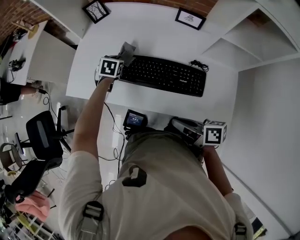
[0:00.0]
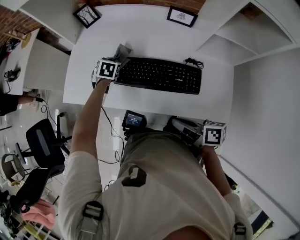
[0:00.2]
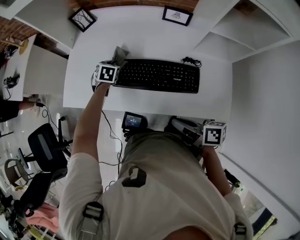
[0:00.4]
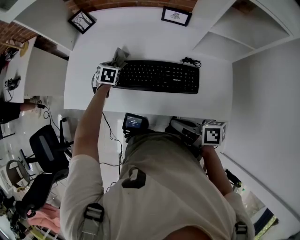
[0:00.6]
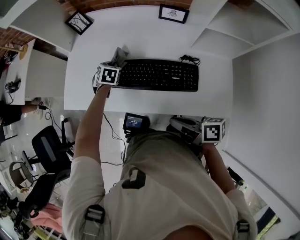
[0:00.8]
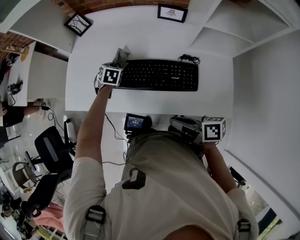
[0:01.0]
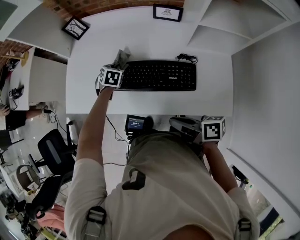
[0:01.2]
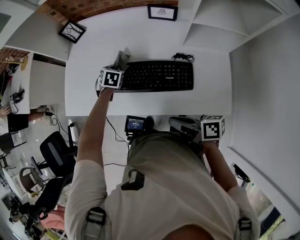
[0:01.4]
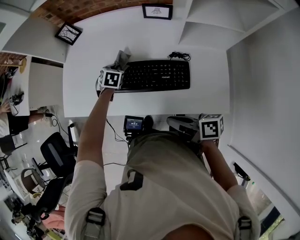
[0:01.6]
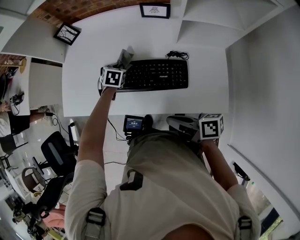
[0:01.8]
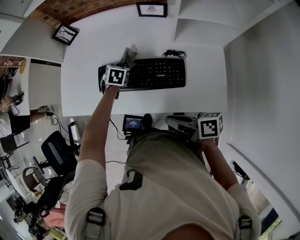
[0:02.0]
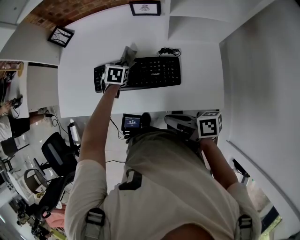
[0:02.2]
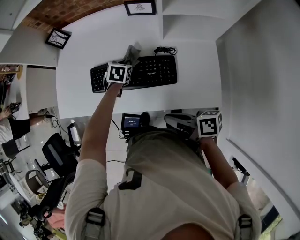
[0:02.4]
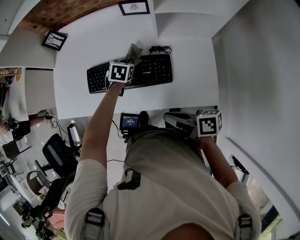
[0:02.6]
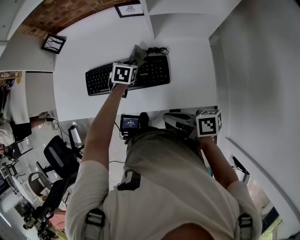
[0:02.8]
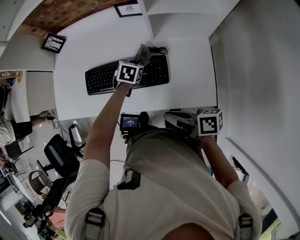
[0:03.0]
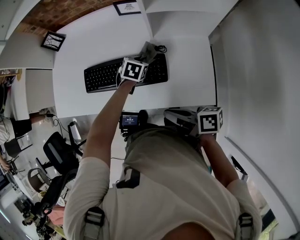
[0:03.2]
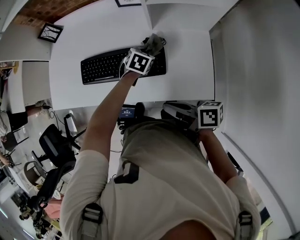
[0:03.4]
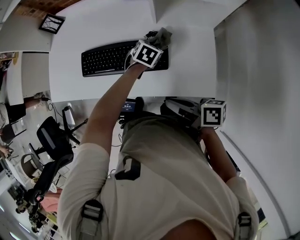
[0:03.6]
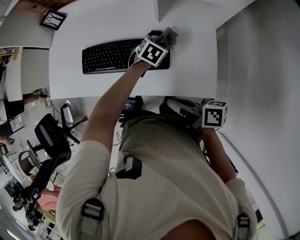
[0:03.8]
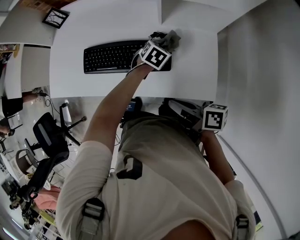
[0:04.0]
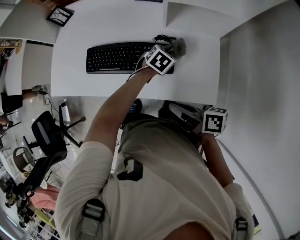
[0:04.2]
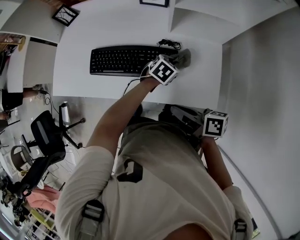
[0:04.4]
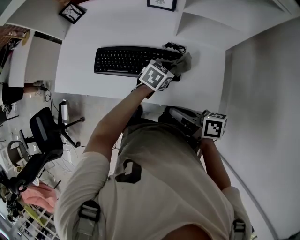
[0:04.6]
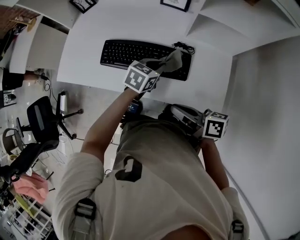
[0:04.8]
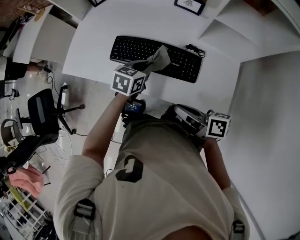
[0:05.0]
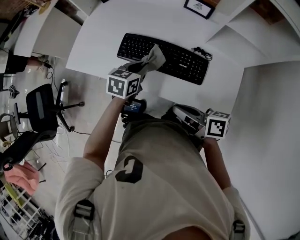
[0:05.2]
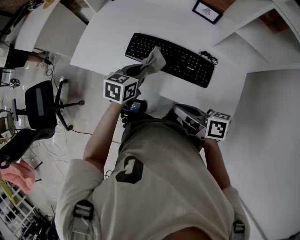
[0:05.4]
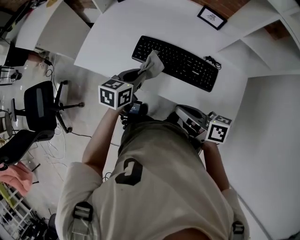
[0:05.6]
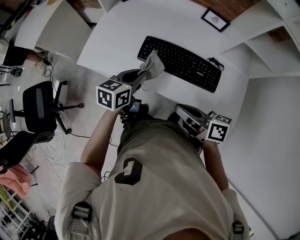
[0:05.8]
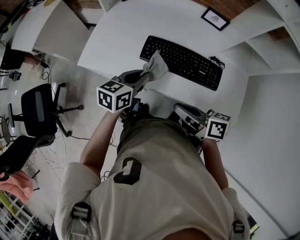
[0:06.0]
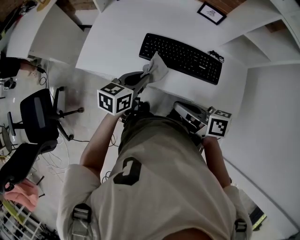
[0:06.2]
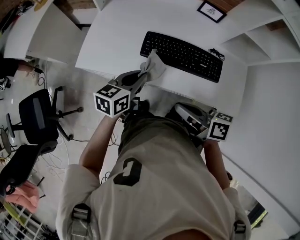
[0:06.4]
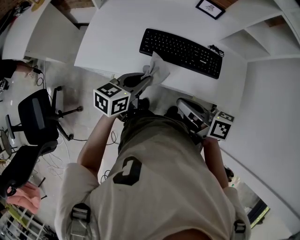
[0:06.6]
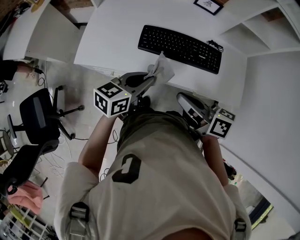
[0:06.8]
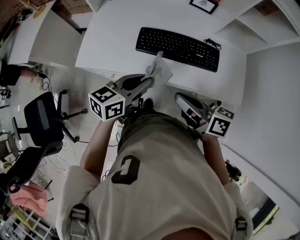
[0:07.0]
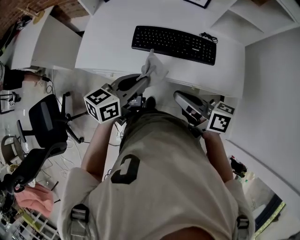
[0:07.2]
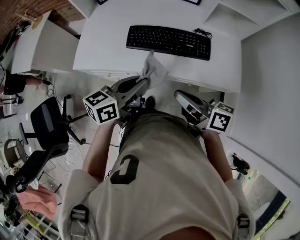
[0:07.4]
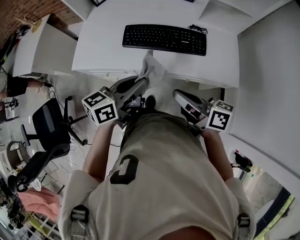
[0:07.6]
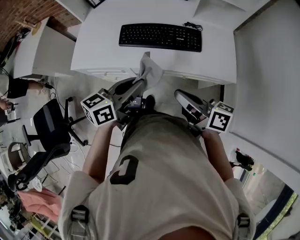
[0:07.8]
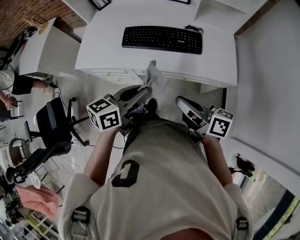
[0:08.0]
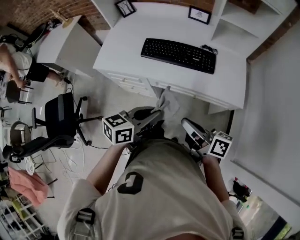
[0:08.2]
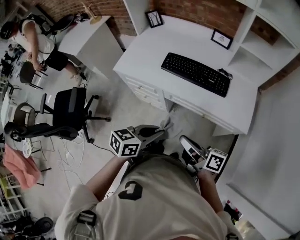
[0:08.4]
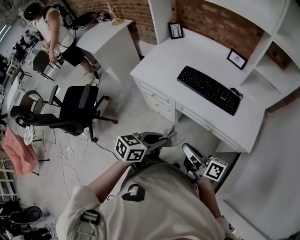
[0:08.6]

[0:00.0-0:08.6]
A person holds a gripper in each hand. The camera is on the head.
0:00.0 to 0:01.4: The left gripper is displaced to the right by about 5 cm.
0:01.4 to 0:02.8: The right gripper is displaced to the right by some 10 cm. Meanwhile the left gripper shifts some 20 cm to the right and backward.
0:02.8 to 0:04.4: The left gripper heads to the right and backward, covering some 15 cm.
0:04.4 to 0:05.8: The left gripper heads to the left, covering some 40 cm, and rotates some 50 degrees. Meanwhile the right gripper is displaced to the left by about 20 cm.
0:05.8 to 0:07.2: The left gripper heads backward and upward, covering some 10 cm, and swivels about 20 degrees, while the right gripper shifts by roughly 5 cm.
0:07.2 to 0:08.6: The two grippers go about 15 cm backward.

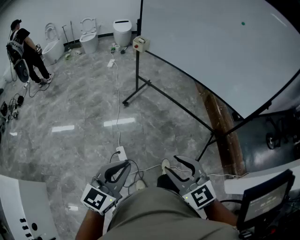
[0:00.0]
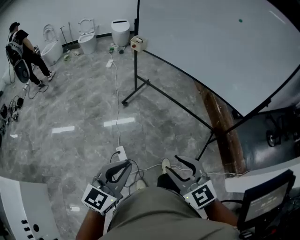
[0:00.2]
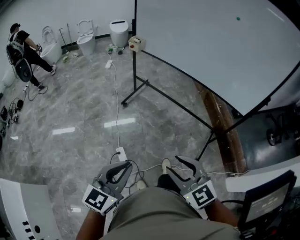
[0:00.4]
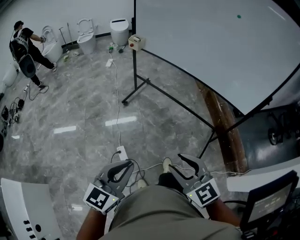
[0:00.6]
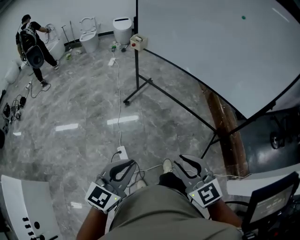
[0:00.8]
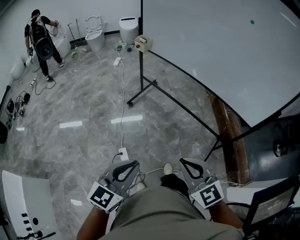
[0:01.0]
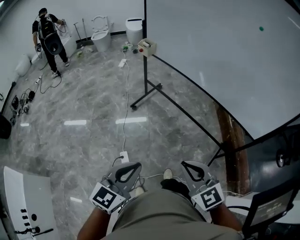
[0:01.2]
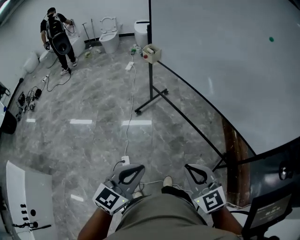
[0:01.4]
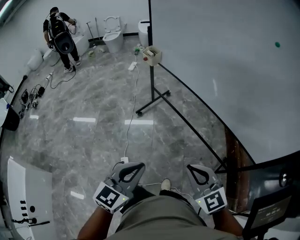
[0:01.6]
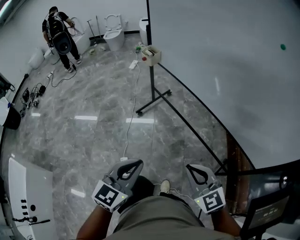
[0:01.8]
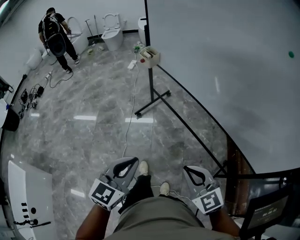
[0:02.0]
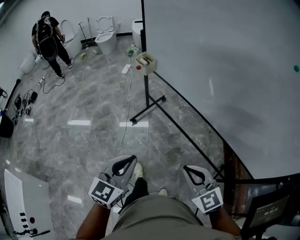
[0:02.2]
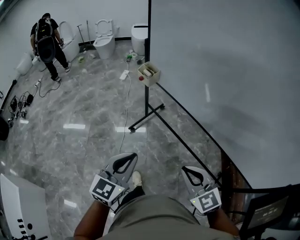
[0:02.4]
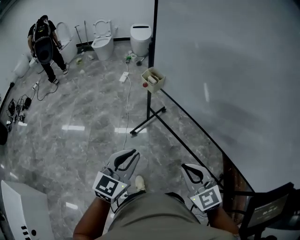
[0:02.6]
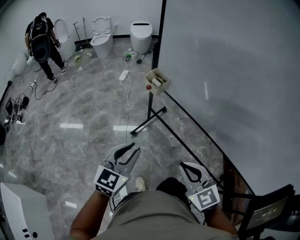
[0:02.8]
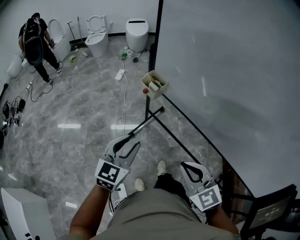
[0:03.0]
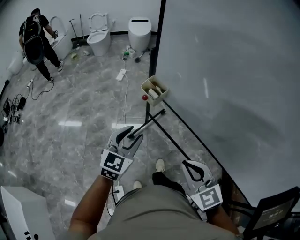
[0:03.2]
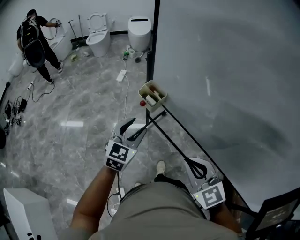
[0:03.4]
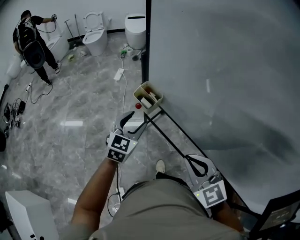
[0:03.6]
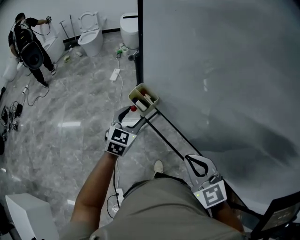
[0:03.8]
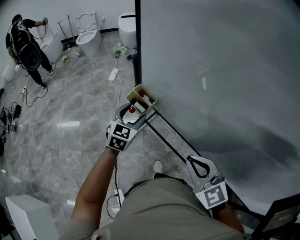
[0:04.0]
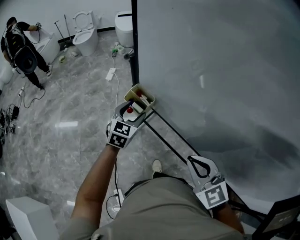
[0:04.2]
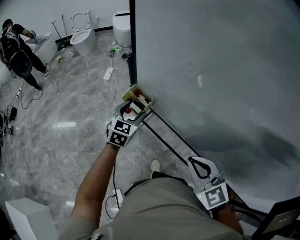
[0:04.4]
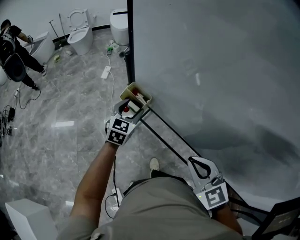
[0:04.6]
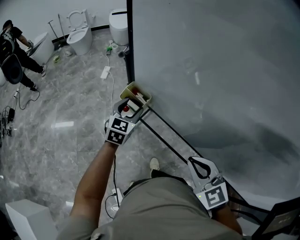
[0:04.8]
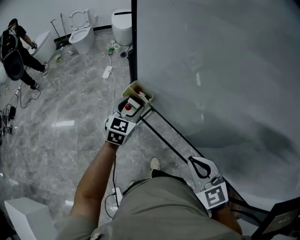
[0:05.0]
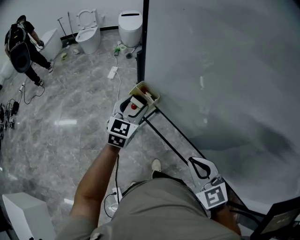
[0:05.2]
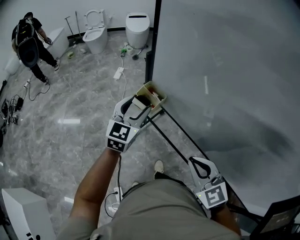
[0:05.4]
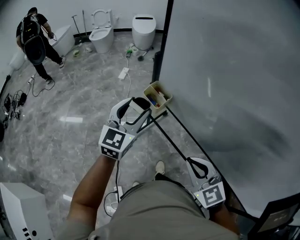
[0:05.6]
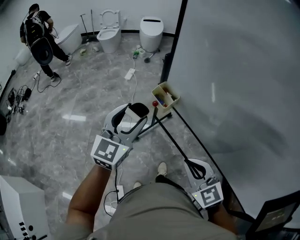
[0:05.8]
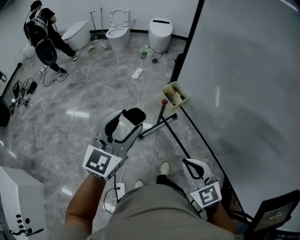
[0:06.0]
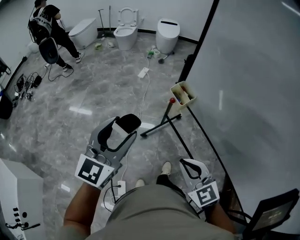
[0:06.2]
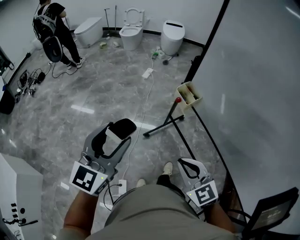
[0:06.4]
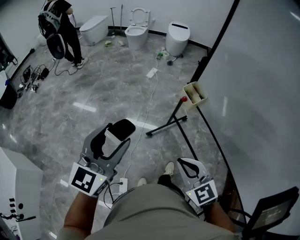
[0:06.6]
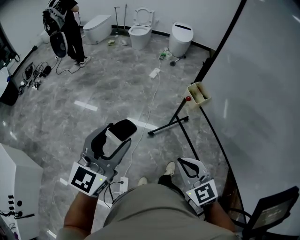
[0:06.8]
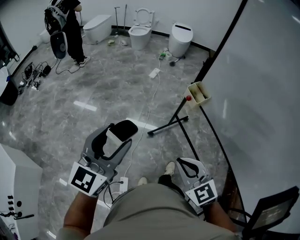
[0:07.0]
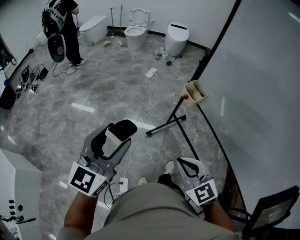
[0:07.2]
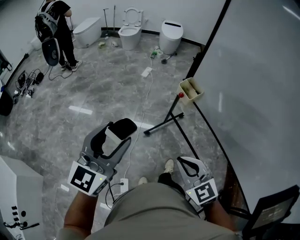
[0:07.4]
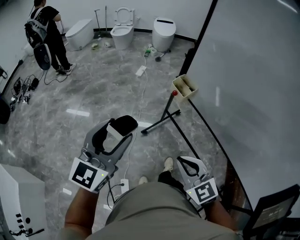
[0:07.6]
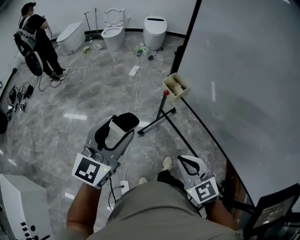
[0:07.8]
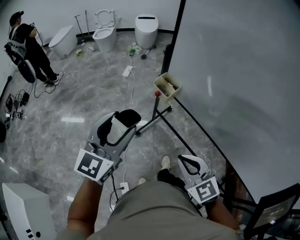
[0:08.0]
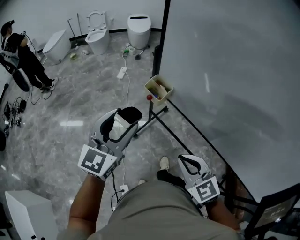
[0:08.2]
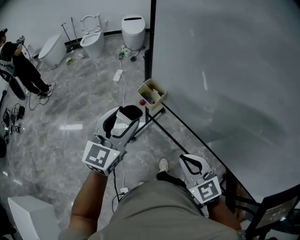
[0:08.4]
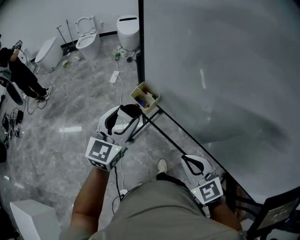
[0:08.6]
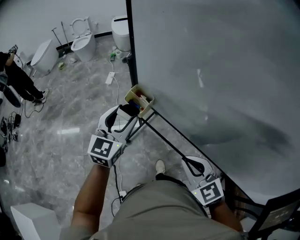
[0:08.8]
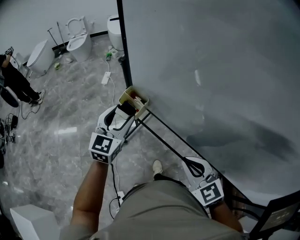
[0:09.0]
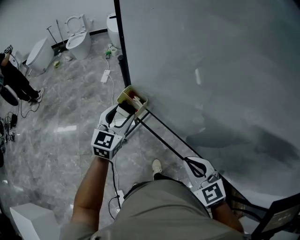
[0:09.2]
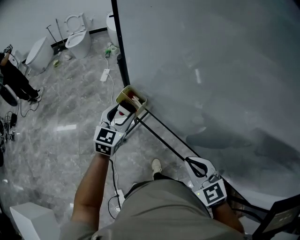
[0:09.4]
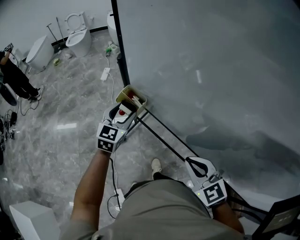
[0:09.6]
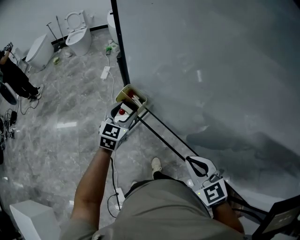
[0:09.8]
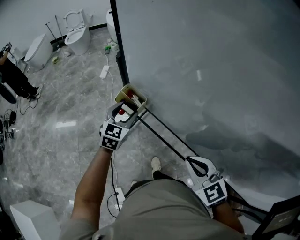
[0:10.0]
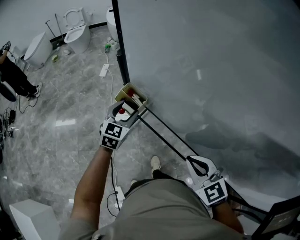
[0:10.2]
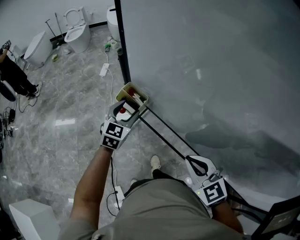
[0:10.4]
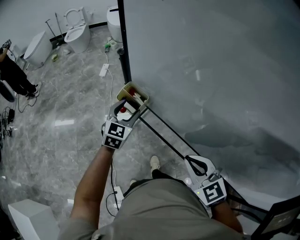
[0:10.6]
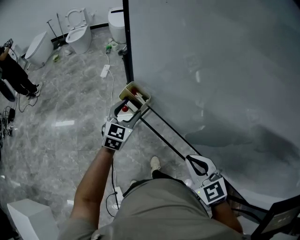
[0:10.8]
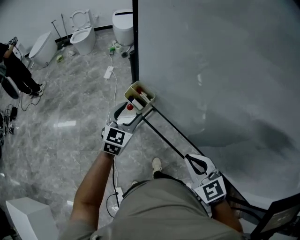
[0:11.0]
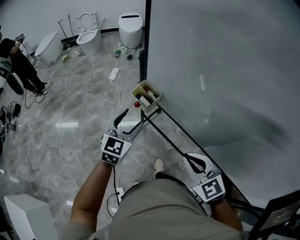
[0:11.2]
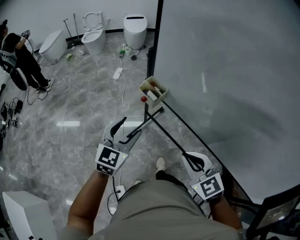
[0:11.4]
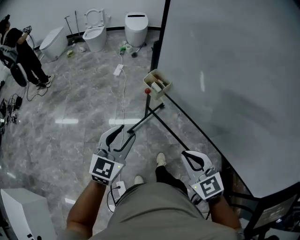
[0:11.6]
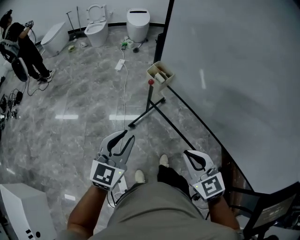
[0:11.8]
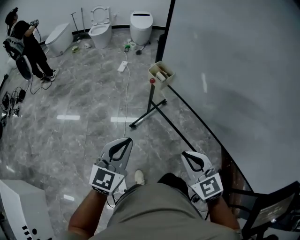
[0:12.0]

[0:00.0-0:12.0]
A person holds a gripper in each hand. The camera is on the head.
0:00.0 to 0:01.6: Both grippers travel together forward and to the right, roughly 30 cm. The right gripper closes.
0:01.6 to 0:03.0: The grippers both shift forward by approximately 40 cm. The left gripper opens.
0:03.0 to 0:04.4: The left gripper travels forward by about 30 cm, and opens its fingers, while the right gripper goes approximately 20 cm forward and to the right.
0:04.4 to 0:06.0: The right gripper goes roughly 15 cm to the left and backward. Meanwhile the left gripper shifts roughly 30 cm backward, upward and to the left, and rotates about 30 degrees.
0:06.0 to 0:07.6: Both grippers move to the left and backward, roughly 15 cm.
0:07.6 to 0:09.0: The left gripper is displaced forward, to the right and downward by approximately 35 cm. Meanwhile the right gripper is displaced to the right and forward by some 25 cm.
0:09.0 to 0:10.4: The left gripper shifts some 15 cm downward and forward.
0:10.4 to 0:12.0: The right gripper travels backward and to the left by some 20 cm. Meanwhile the left gripper heads backward, covering some 35 cm, and closes up.

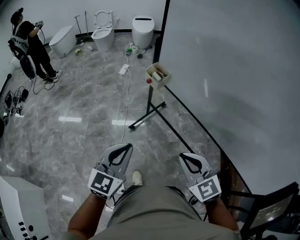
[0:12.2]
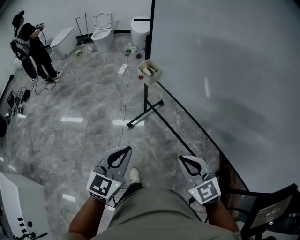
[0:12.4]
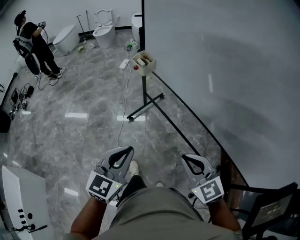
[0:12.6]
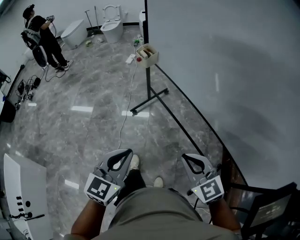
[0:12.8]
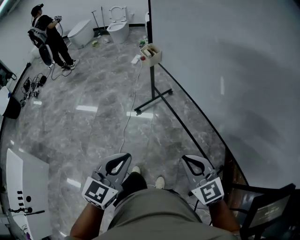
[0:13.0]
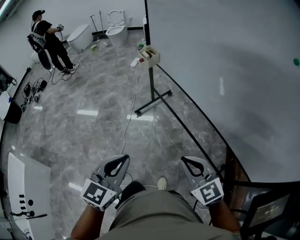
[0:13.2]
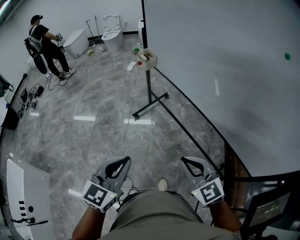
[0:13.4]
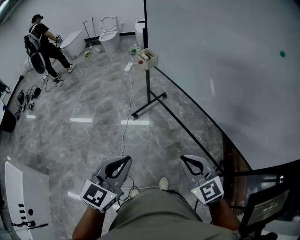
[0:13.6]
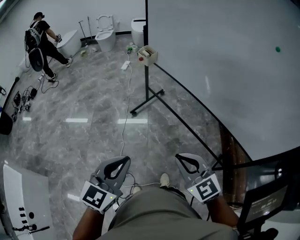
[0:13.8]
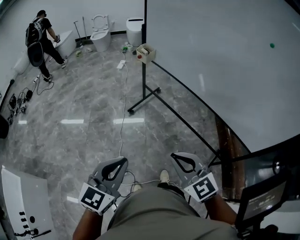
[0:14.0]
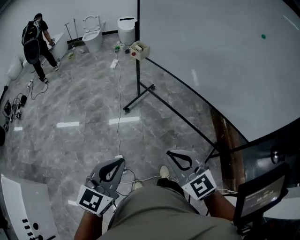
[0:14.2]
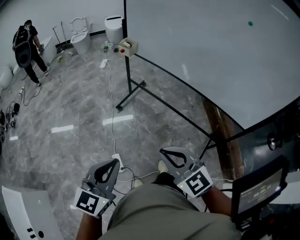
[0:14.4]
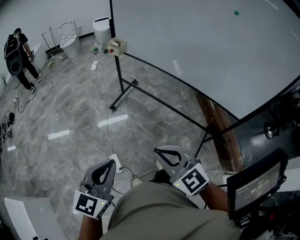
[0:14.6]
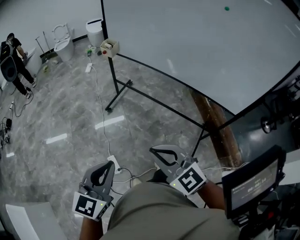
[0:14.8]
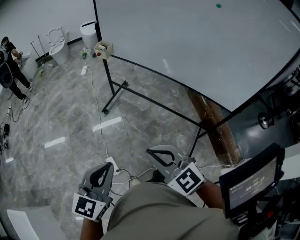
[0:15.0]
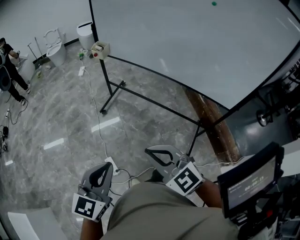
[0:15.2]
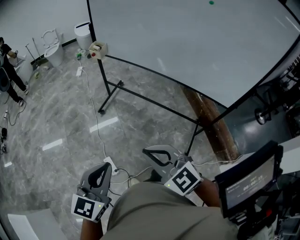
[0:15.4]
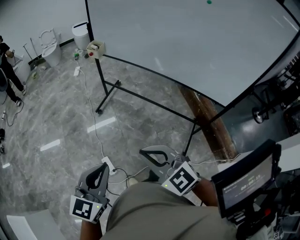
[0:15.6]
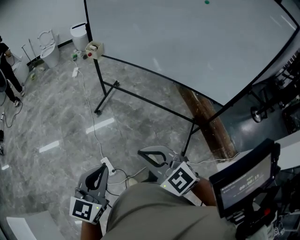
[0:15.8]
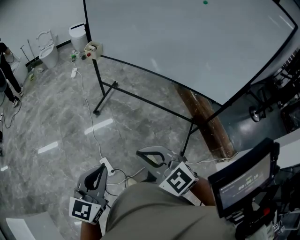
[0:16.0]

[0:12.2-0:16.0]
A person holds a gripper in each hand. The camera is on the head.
0:12.2 to 0:13.4: Both grippers move backward and to the right, roughly 30 cm.
0:13.4 to 0:14.8: The right gripper travels to the left and backward by some 25 cm, while the left gripper moves backward and to the left, roughly 20 cm.
0:14.8 to 0:16.0: The grippers stay close to where they were, moving slightly.
